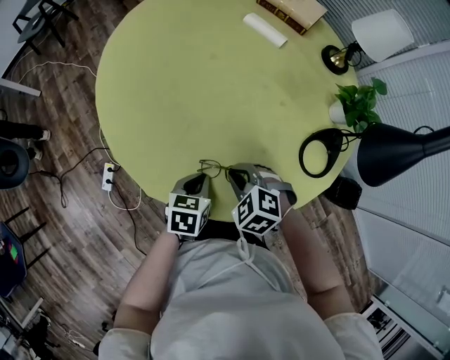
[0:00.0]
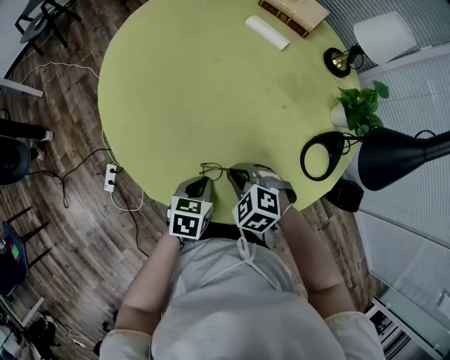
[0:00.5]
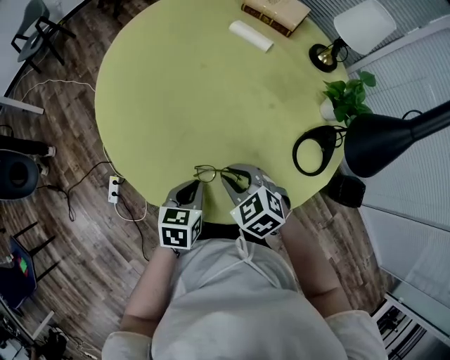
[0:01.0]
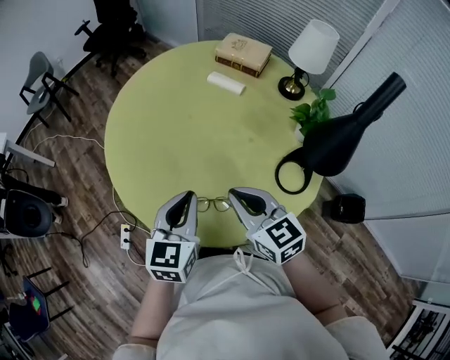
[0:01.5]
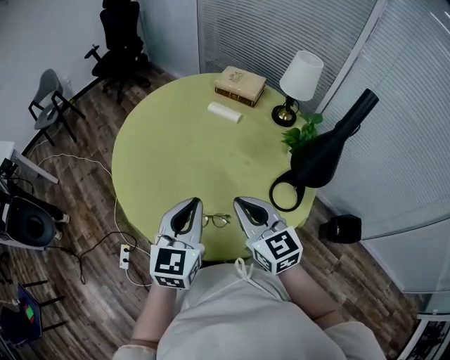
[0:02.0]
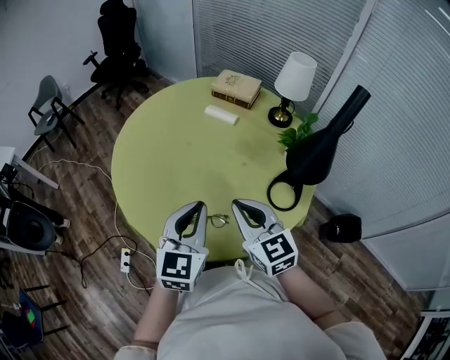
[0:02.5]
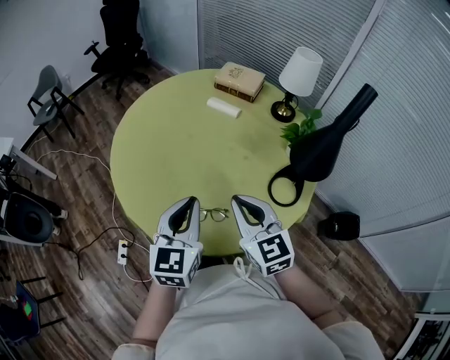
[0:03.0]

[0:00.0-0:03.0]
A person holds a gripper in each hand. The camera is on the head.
0:00.0 to 0:01.5: The two grippers go some 20 cm upward. The left gripper points its fingers about 30 degrees further upward. Meanwhile the right gripper angles its fingers upward, by approximately 40 degrees.
0:01.5 to 0:03.0: Both grippers travel together upward, about 5 cm.

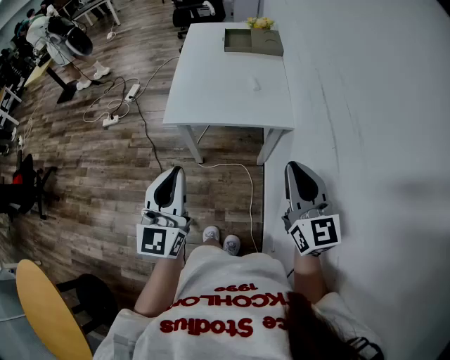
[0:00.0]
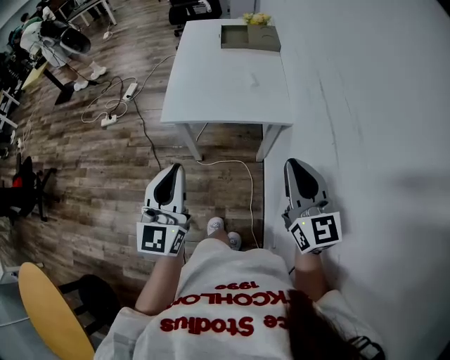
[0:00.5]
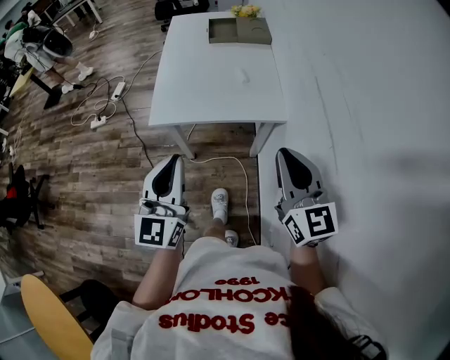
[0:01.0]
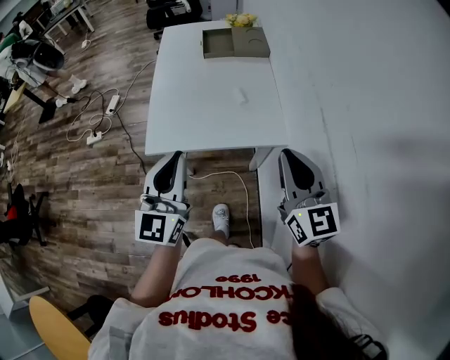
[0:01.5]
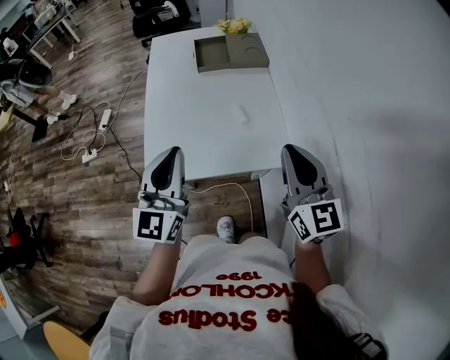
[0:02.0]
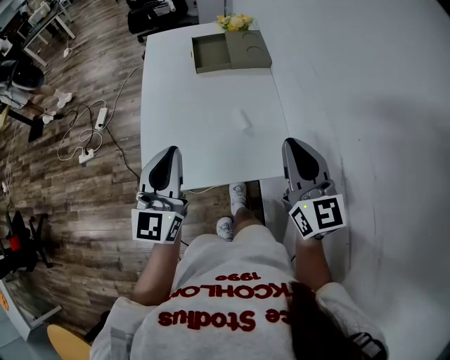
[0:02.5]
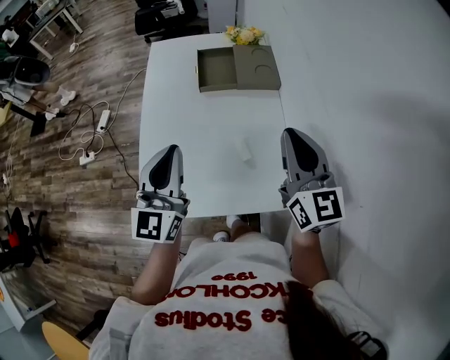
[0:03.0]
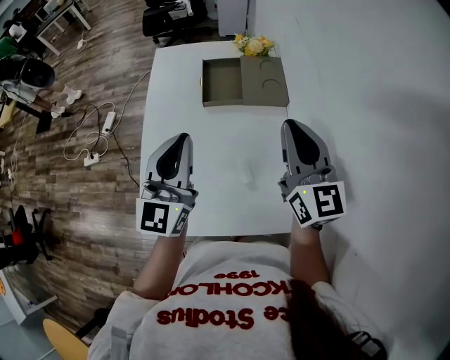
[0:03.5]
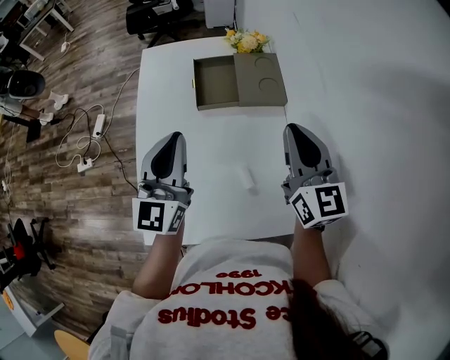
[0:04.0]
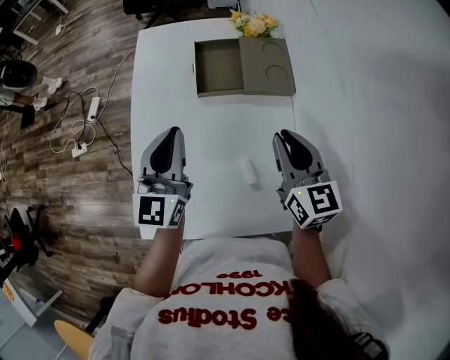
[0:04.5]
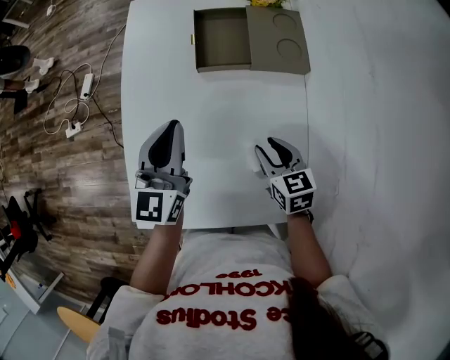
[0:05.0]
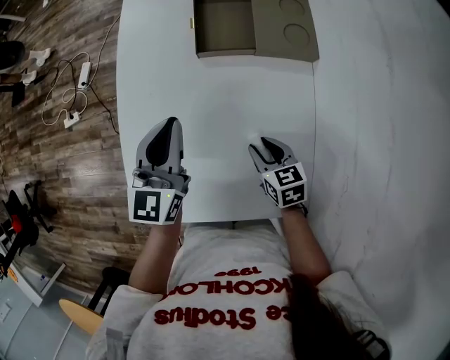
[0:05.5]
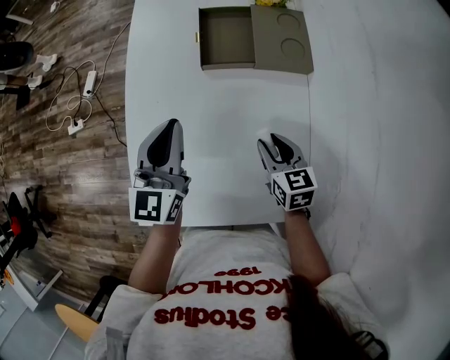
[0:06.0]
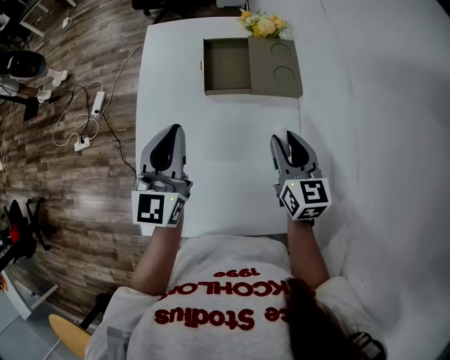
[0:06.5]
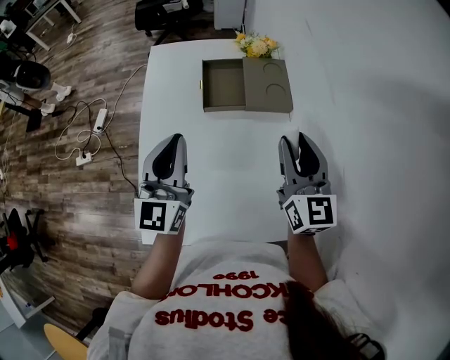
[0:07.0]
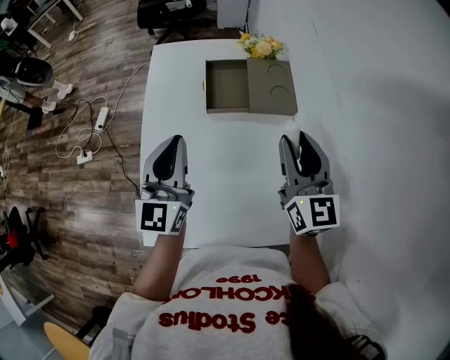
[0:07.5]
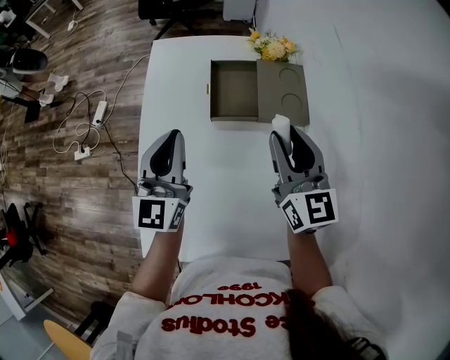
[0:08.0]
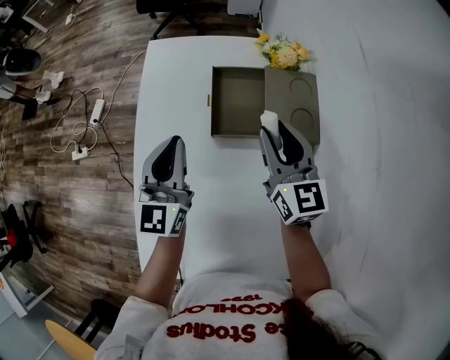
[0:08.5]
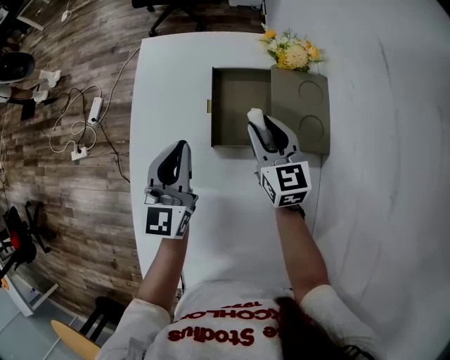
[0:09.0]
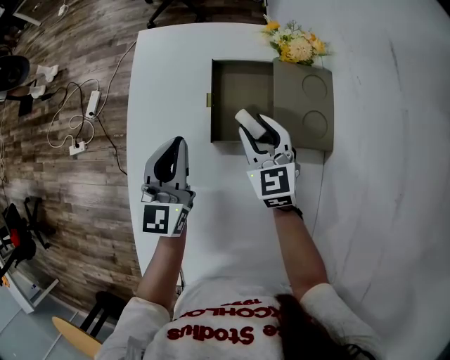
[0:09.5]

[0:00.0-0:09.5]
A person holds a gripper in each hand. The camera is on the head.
0:00.0 to 0:02.0: Both grippers move forward, some 25 cm.
0:02.0 to 0:04.0: The two grippers go some 30 cm forward.
0:04.0 to 0:05.5: The right gripper travels downward by some 30 cm, angles its fingers downward, by roughly 40 degrees, and opens, while the left gripper travels downward by approximately 15 cm.
0:05.5 to 0:07.5: The right gripper moves upward, roughly 30 cm, and points its fingers some 40 degrees further upward, while the left gripper heads upward, covering roughly 10 cm.
0:07.5 to 0:09.5: The right gripper travels downward, forward and to the left by roughly 35 cm, and swivels roughly 30 degrees; the left gripper travels forward and downward by roughly 25 cm.

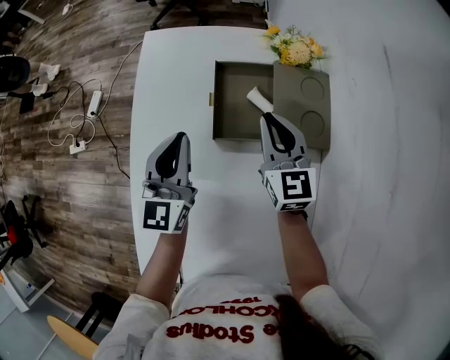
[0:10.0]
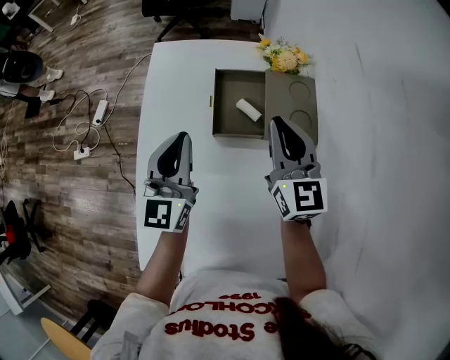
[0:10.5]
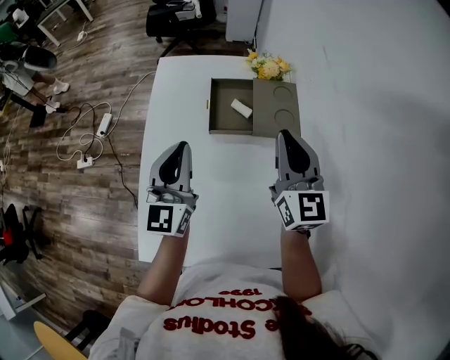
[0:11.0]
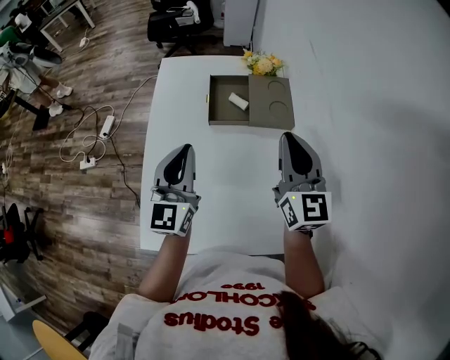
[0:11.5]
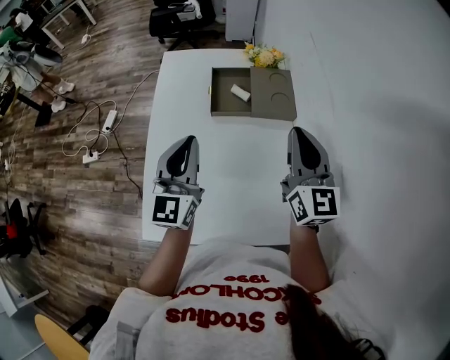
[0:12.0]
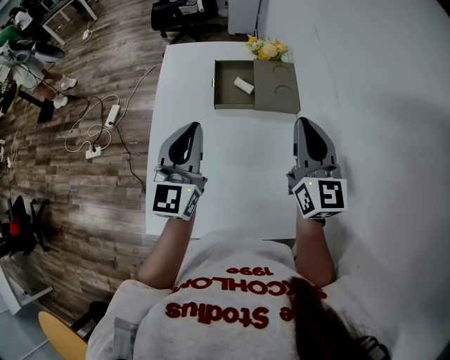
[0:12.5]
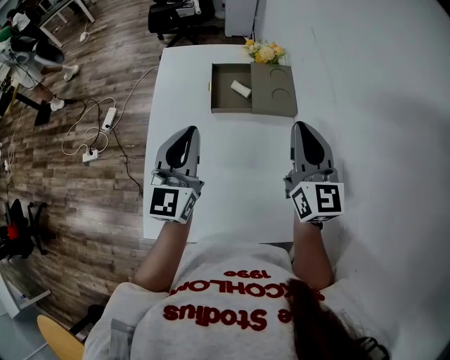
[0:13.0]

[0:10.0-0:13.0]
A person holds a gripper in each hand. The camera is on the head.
0:10.0 to 0:11.5: Both grippers move backward and upward, roughly 25 cm.
0:11.5 to 0:13.0: There are only small adjustments of the grippers.

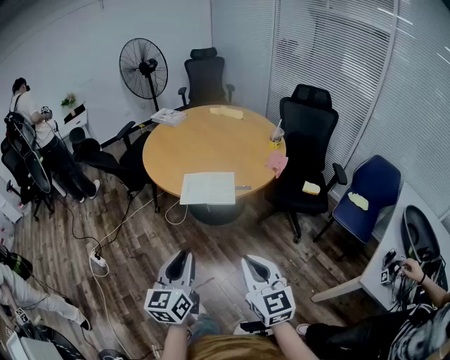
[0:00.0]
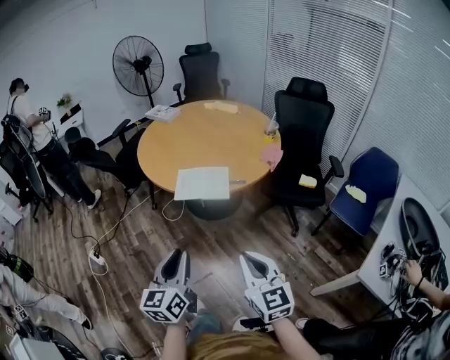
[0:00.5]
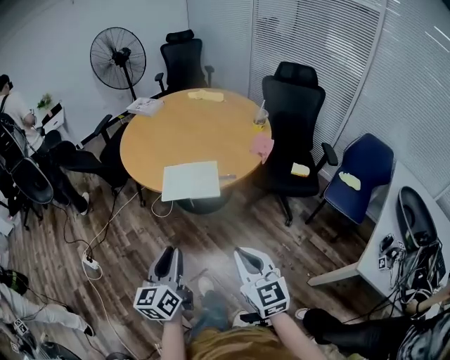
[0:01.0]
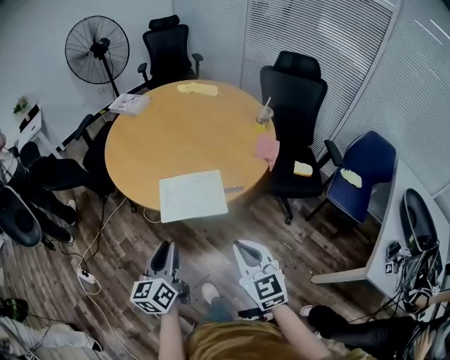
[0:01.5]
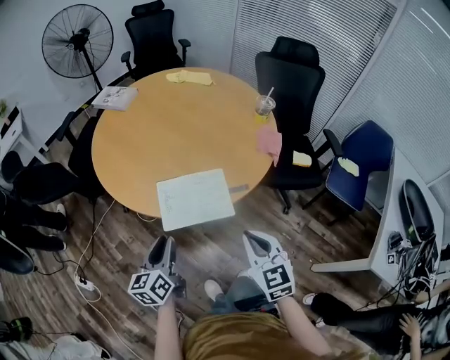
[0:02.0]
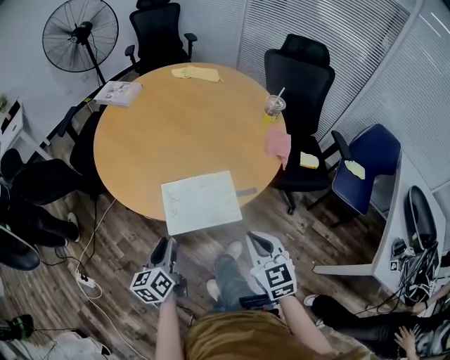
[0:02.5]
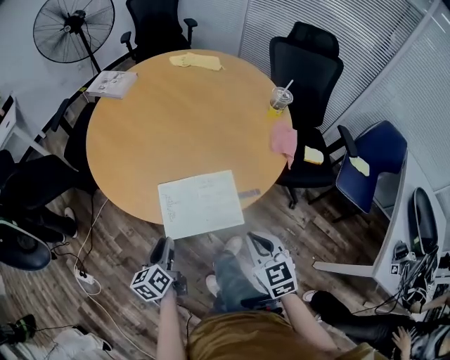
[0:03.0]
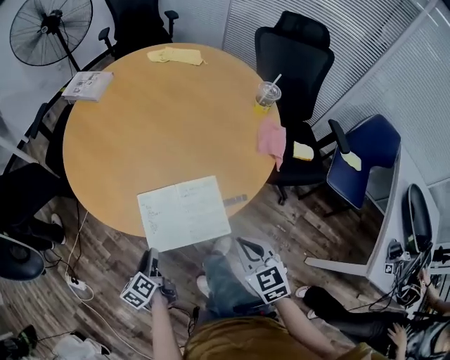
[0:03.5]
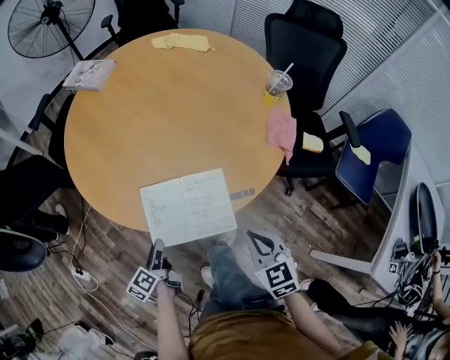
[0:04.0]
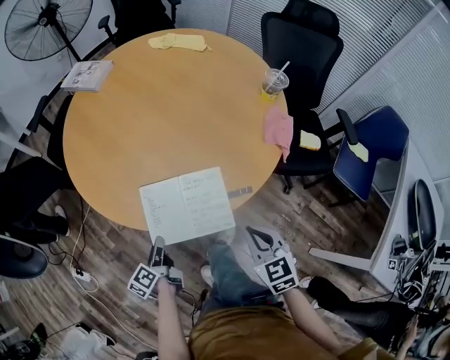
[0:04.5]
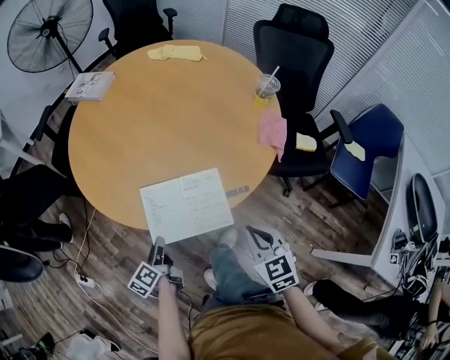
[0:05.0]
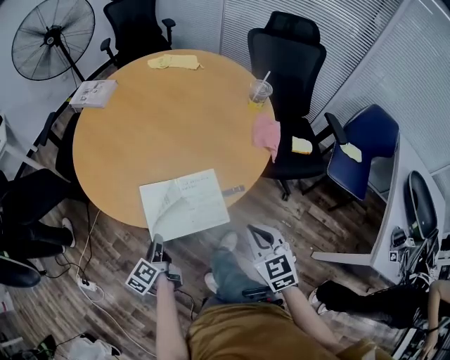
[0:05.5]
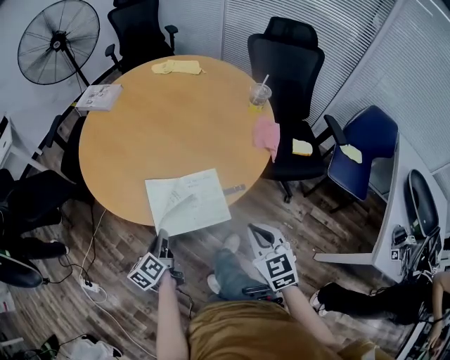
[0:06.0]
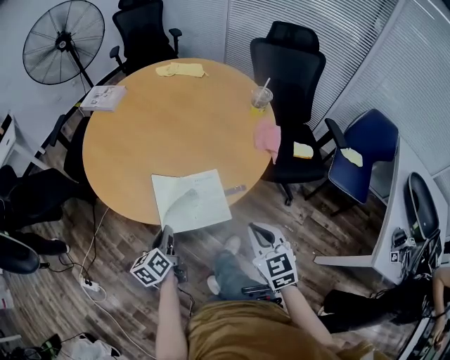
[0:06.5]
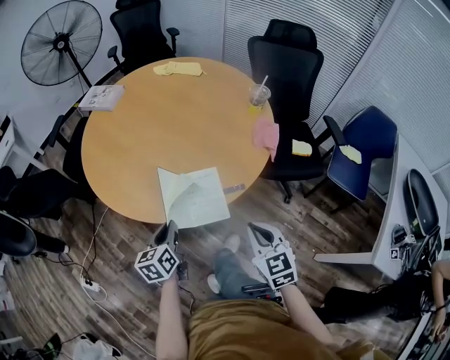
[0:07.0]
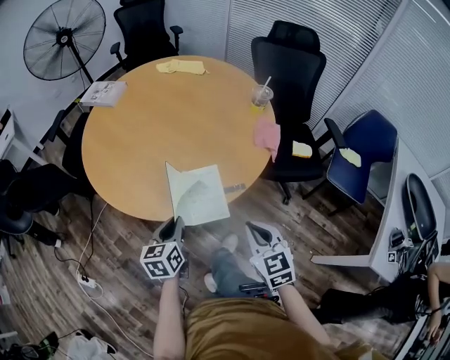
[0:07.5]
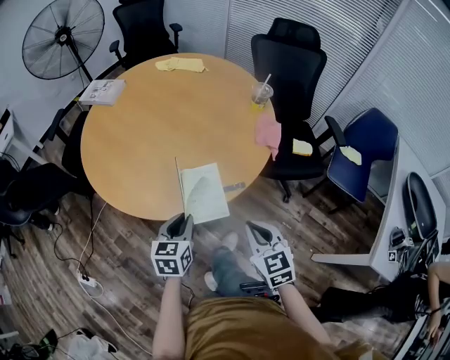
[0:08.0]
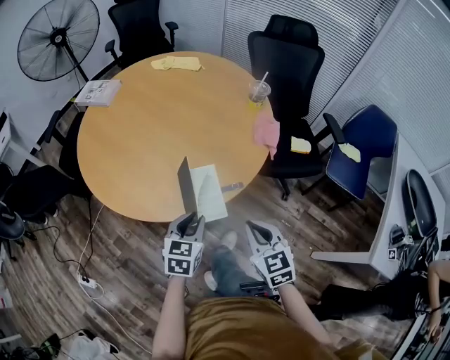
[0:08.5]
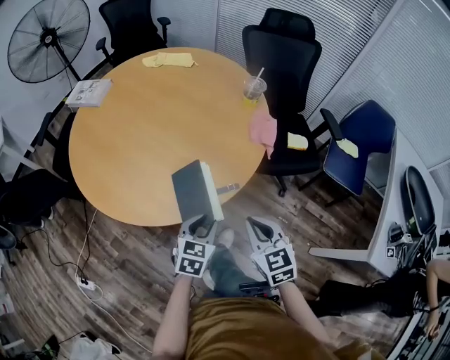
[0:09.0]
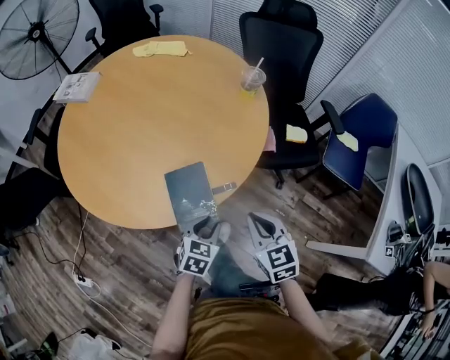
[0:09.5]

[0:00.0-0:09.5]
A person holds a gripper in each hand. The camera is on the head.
0:00.0 to 0:02.0: The right gripper goes roughly 30 cm forward, and turns by roughly 20 degrees. The left gripper moves forward and downward, some 35 cm, and swivels roughly 20 degrees.
0:02.0 to 0:04.0: The grippers both shift downward and forward by roughly 15 cm. The left gripper swivels roughly 40 degrees.
0:04.0 to 0:05.5: The right gripper ends up about 5 cm from where it was; the left gripper is displaced upward by some 5 cm, and closes its fingers.
0:05.5 to 0:07.5: The left gripper shifts some 10 cm to the right and upward, and twists approximately 40 degrees clockwise, seen from behind.
0:07.5 to 0:09.5: The left gripper goes approximately 15 cm to the right and downward, turns by approximately 40 degrees, and opens, while the right gripper travels forward by approximately 5 cm.

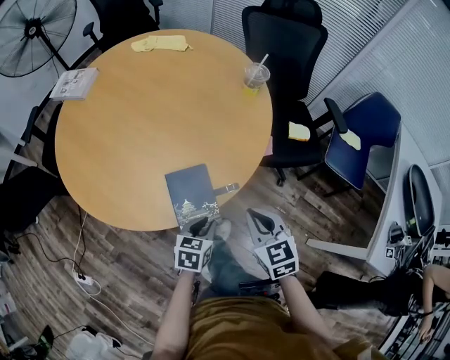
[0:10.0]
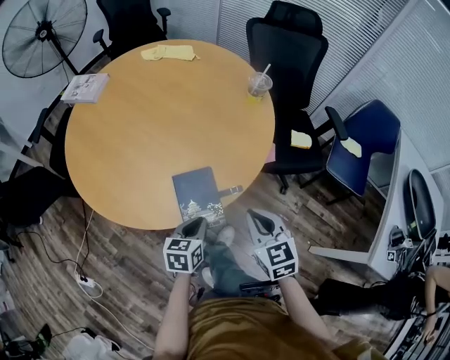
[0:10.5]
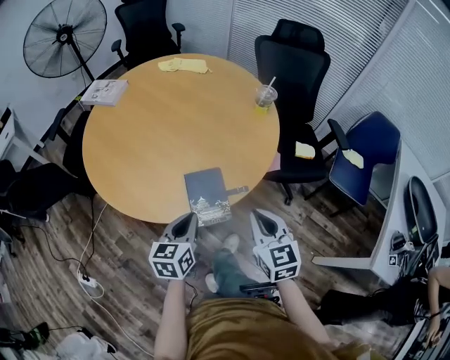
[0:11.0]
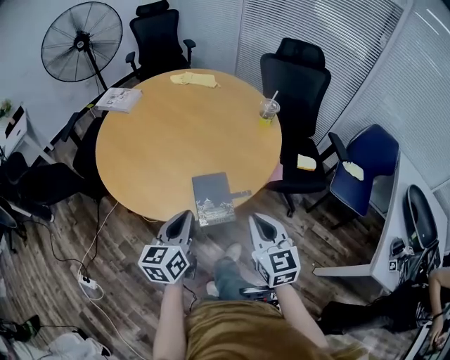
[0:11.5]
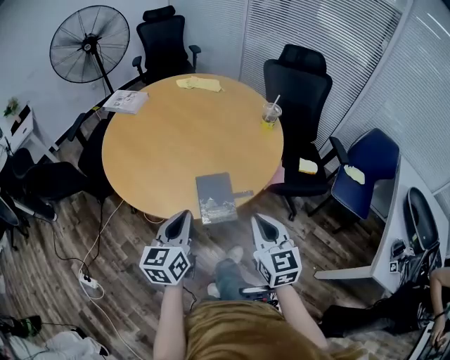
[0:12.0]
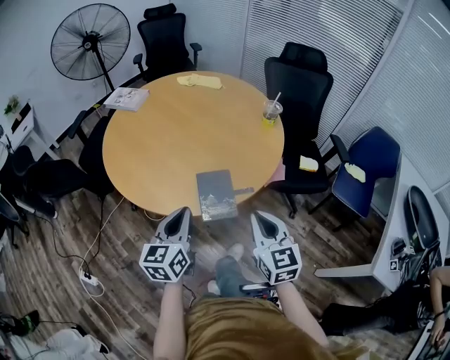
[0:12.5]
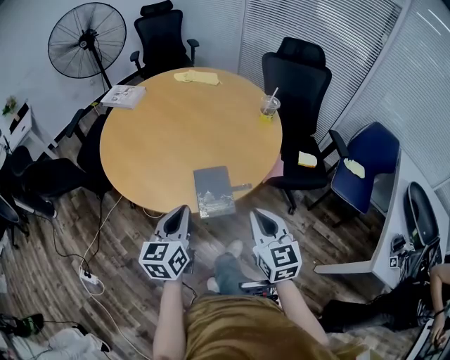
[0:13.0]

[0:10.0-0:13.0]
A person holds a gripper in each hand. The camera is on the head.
0:10.0 to 0:11.5: The left gripper heads upward and to the left, covering approximately 25 cm, and tilts its fingers roughly 30 degrees upward; the right gripper moves upward and backward, some 15 cm.
0:11.5 to 0:13.0: The grippers stay close to where they were, moving slightly.
